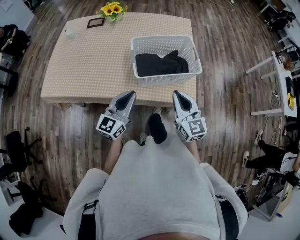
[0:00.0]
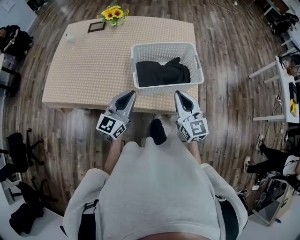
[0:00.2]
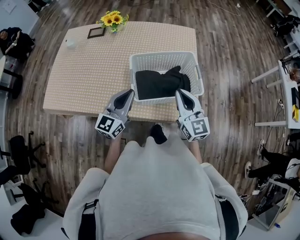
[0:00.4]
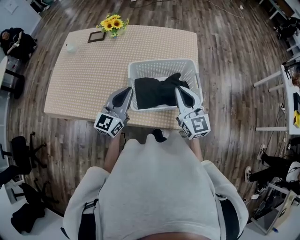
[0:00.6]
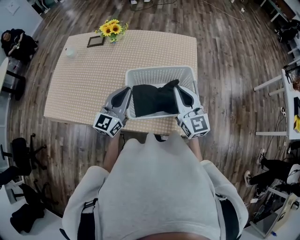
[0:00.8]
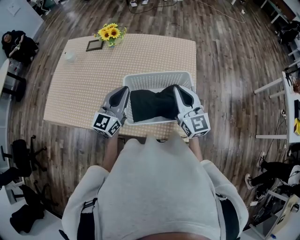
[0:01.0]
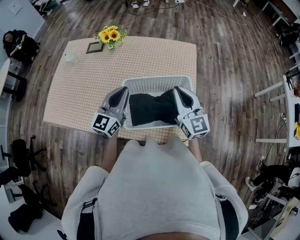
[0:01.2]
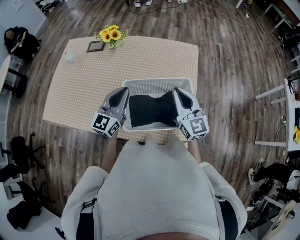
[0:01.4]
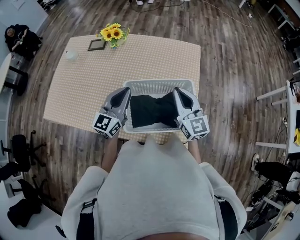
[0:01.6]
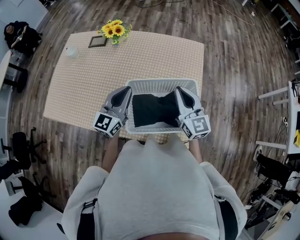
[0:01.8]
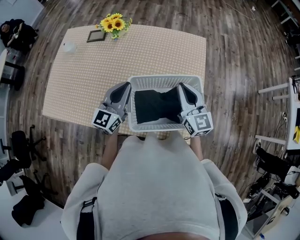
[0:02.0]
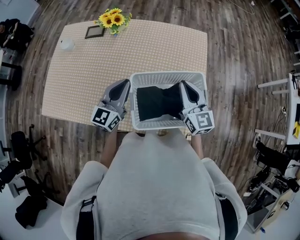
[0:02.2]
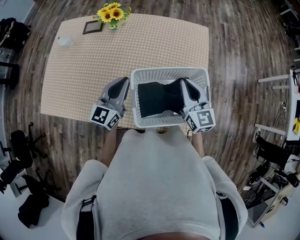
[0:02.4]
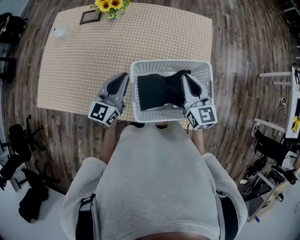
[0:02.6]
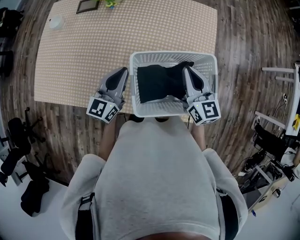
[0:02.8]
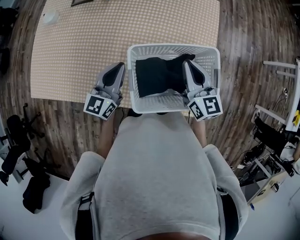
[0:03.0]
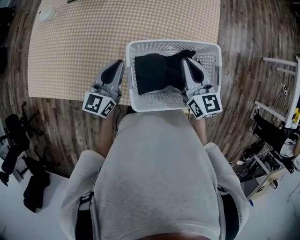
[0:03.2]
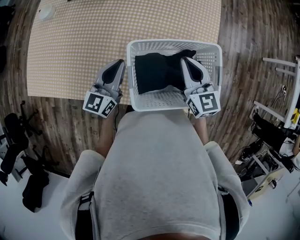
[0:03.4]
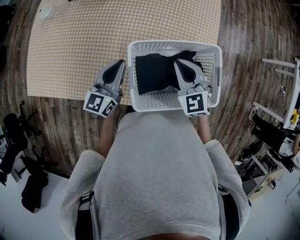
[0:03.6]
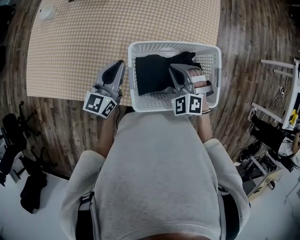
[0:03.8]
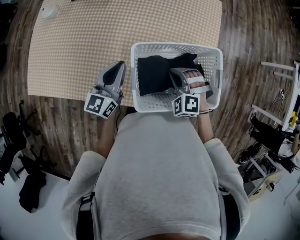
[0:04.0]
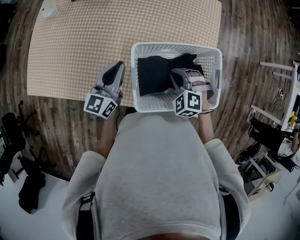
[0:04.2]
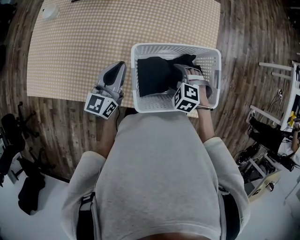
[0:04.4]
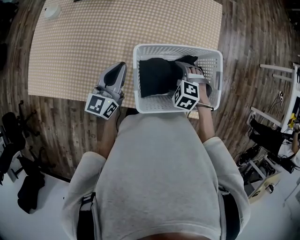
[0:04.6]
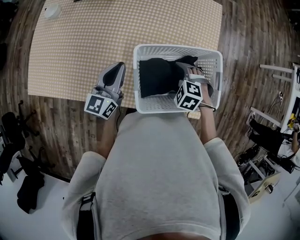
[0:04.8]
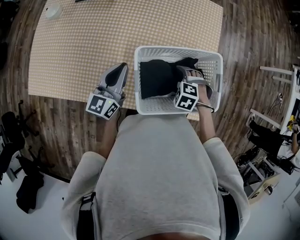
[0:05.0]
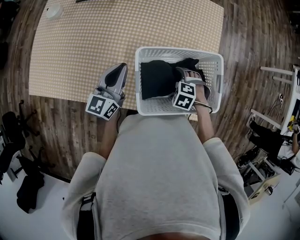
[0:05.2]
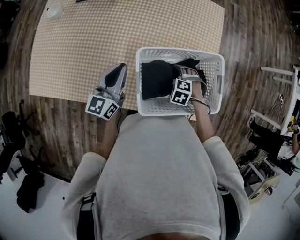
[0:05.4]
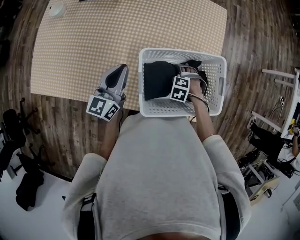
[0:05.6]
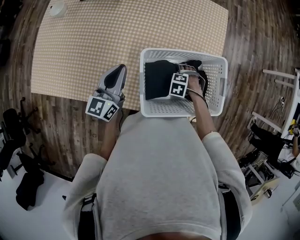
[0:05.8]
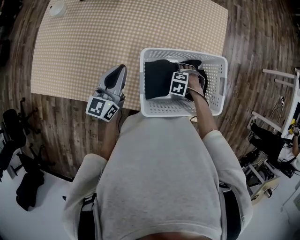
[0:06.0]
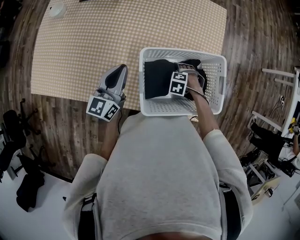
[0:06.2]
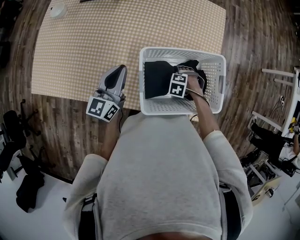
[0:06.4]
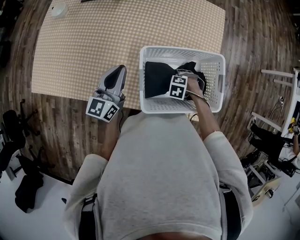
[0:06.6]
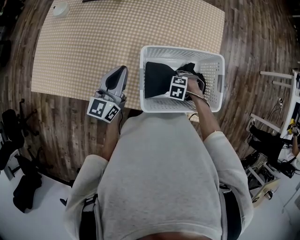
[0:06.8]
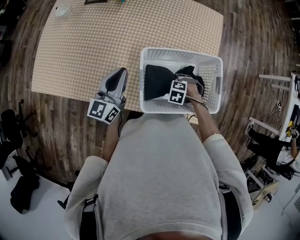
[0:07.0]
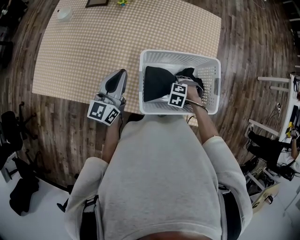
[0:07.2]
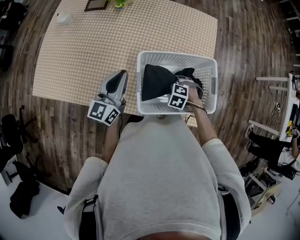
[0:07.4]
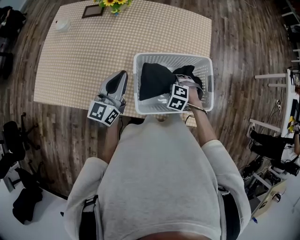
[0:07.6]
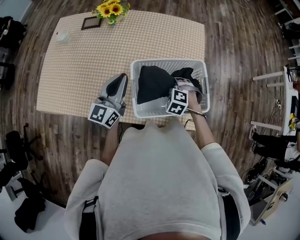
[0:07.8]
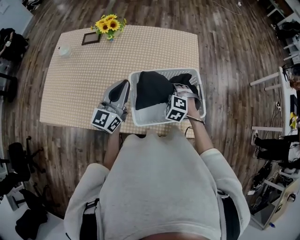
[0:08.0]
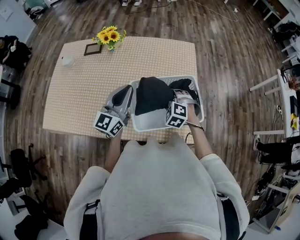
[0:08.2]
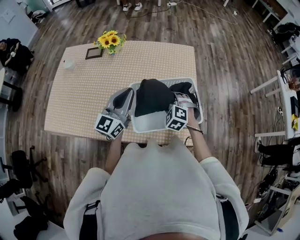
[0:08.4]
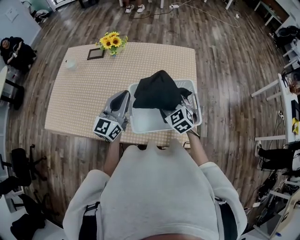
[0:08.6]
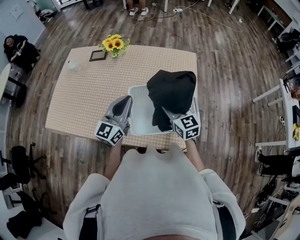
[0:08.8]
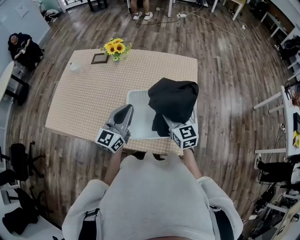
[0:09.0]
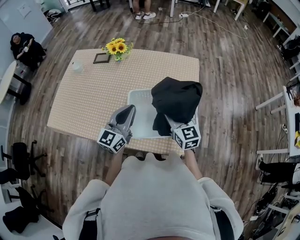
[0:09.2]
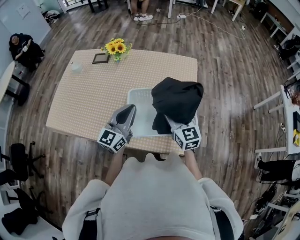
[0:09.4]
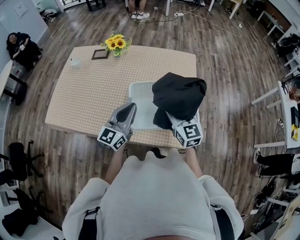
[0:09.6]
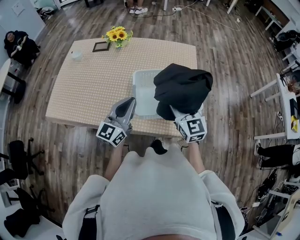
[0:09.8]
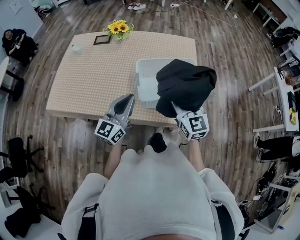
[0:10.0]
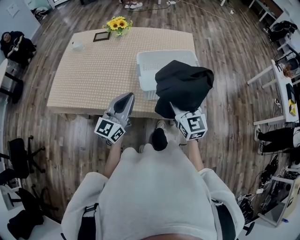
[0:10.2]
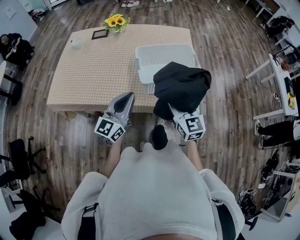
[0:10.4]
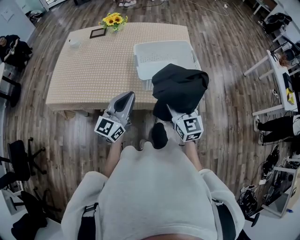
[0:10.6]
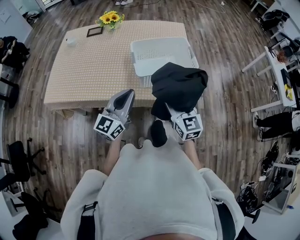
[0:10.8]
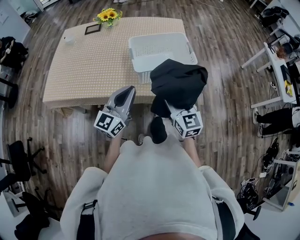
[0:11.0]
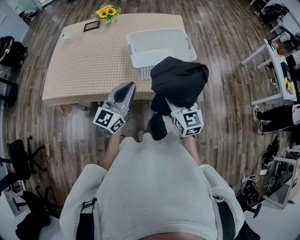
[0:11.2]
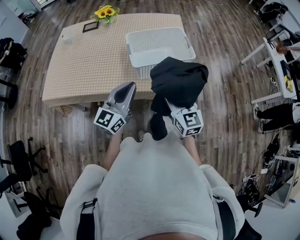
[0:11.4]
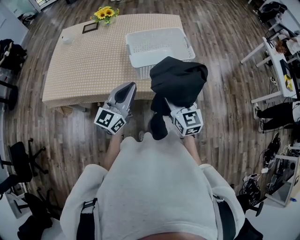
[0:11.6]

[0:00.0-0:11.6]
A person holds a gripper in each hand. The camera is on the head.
0:00.0 to 0:01.4: Both grippers move forward, approximately 25 cm.
0:01.4 to 0:02.8: The left gripper travels downward and to the left by roughly 10 cm. The right gripper moves downward, some 10 cm.
0:02.8 to 0:04.4: The right gripper goes about 15 cm downward, points its fingers approximately 60 degrees further downward, and opens its fingers.
0:04.4 to 0:05.8: The right gripper shifts approximately 10 cm downward, and changes its angle by roughly 20 degrees.
0:05.8 to 0:07.2: The right gripper closes up.
0:07.2 to 0:08.8: The right gripper moves upward, some 25 cm, and points its fingers some 70 degrees further upward; the left gripper changes place by some 15 cm.
0:08.8 to 0:10.2: Both grippers move backward, approximately 20 cm.
0:10.2 to 0:11.6: The right gripper shifts some 10 cm backward. Meanwhile the left gripper shifts about 5 cm backward.

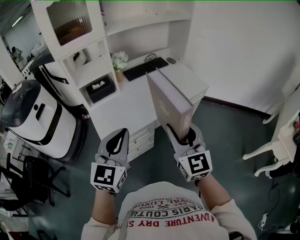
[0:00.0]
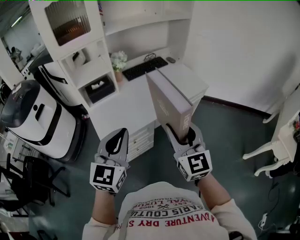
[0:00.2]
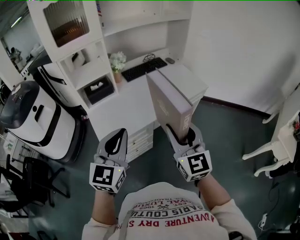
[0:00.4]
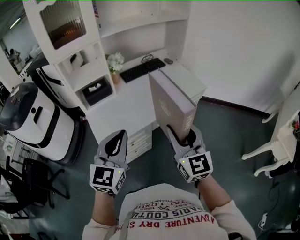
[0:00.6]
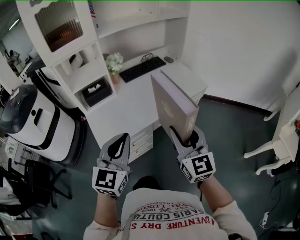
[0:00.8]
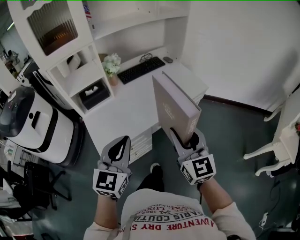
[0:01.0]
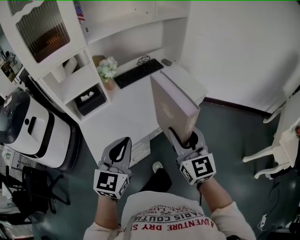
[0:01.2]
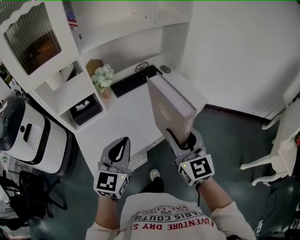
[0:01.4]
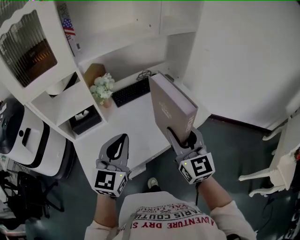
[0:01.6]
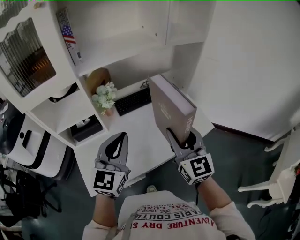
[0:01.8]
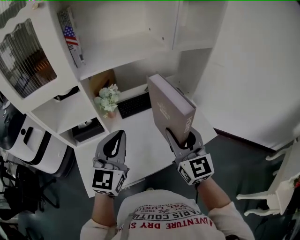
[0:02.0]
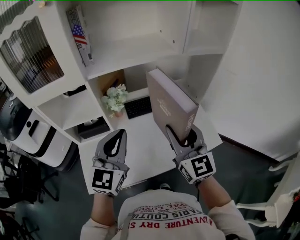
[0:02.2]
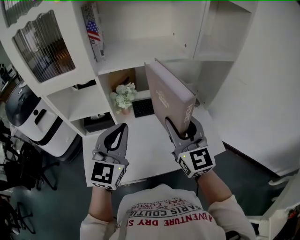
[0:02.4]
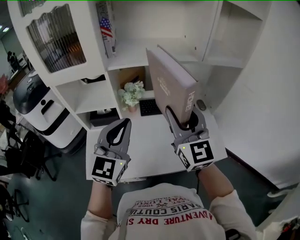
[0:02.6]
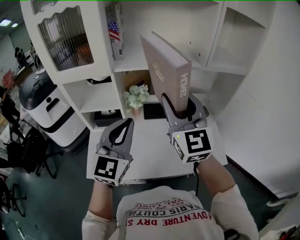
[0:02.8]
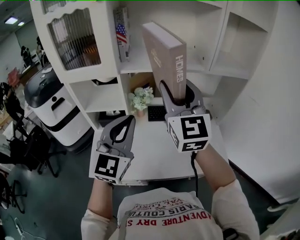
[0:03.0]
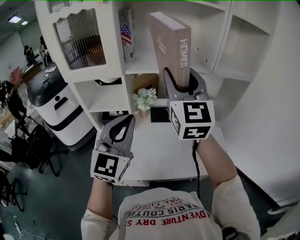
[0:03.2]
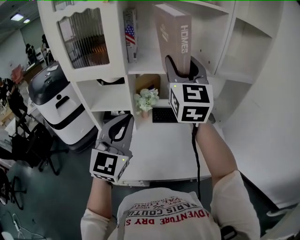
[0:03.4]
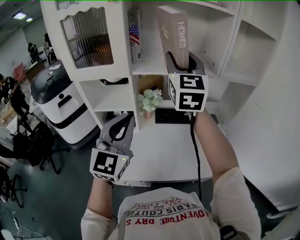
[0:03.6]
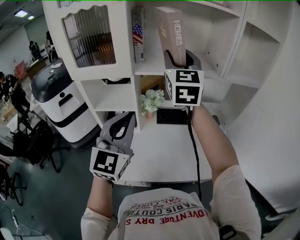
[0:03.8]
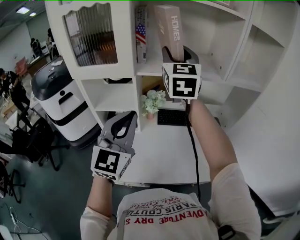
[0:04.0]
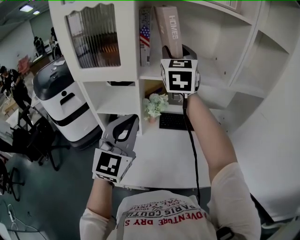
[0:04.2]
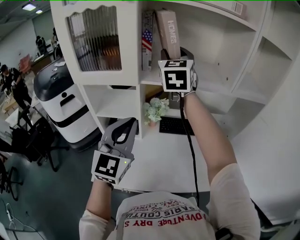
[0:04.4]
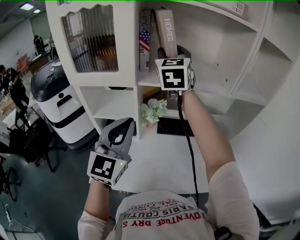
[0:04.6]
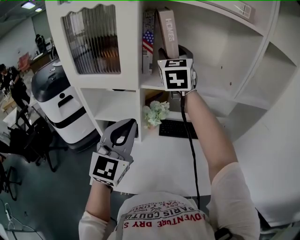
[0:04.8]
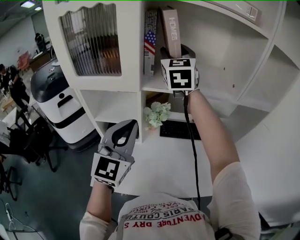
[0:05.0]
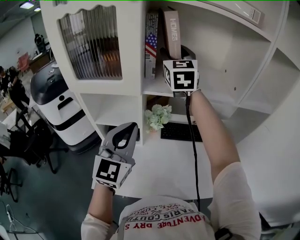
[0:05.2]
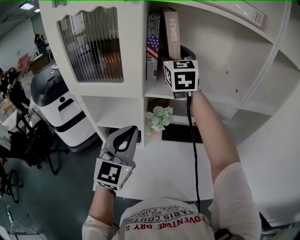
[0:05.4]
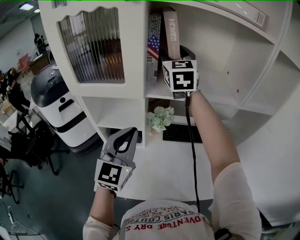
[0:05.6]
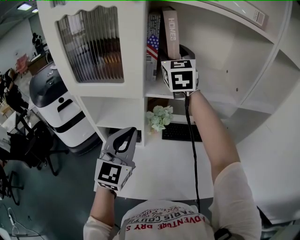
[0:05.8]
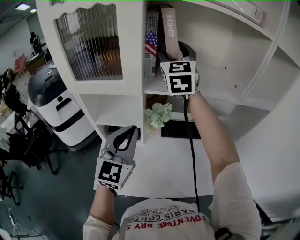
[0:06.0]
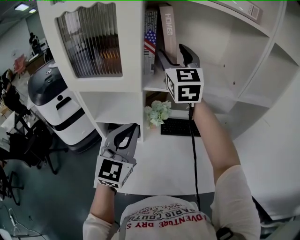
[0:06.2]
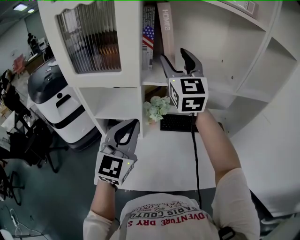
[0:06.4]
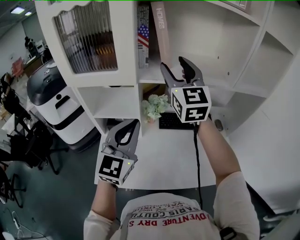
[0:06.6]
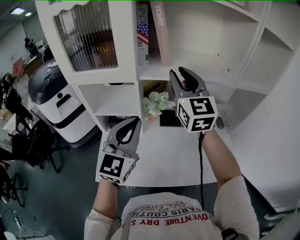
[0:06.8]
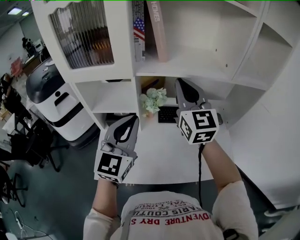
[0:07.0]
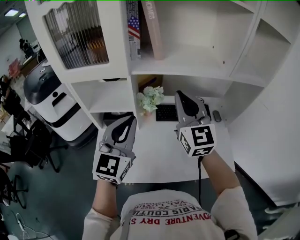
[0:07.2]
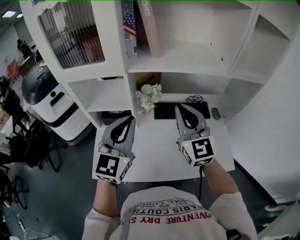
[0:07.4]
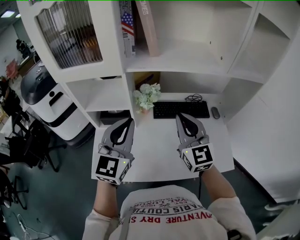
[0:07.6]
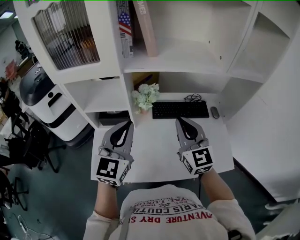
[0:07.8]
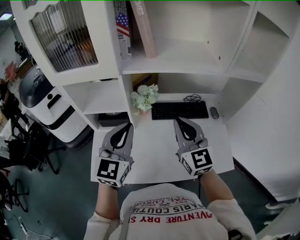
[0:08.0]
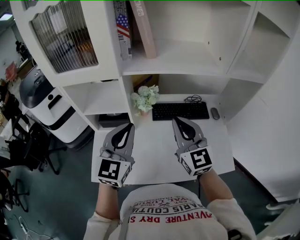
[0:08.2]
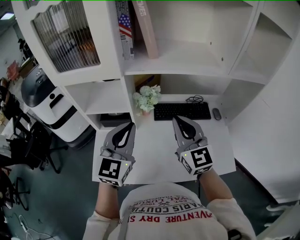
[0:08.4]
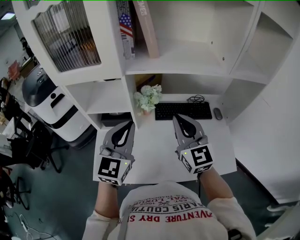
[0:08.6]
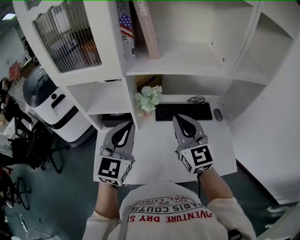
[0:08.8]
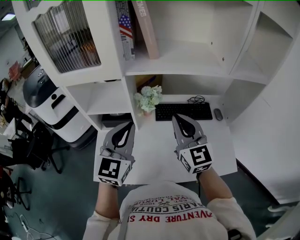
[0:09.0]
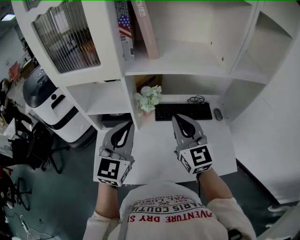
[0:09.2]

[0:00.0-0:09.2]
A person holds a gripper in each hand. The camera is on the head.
0:00.0 to 0:01.6: Both grippers move forward, roughly 25 cm.
0:01.6 to 0:03.0: The left gripper is displaced upward and forward by about 15 cm, and changes its angle by roughly 30 degrees. The right gripper is displaced forward, upward and to the left by approximately 30 cm, and changes its angle by approximately 30 degrees.
0:03.0 to 0:04.6: The left gripper moves to the left and forward, about 10 cm. Meanwhile the right gripper goes some 25 cm forward and to the left.
0:06.2 to 0:07.6: The right gripper travels downward, backward and to the right by approximately 30 cm, and closes up. Meanwhile the left gripper changes place by approximately 5 cm.
0:07.6 to 0:09.2: There are only small adjustments of the grippers.

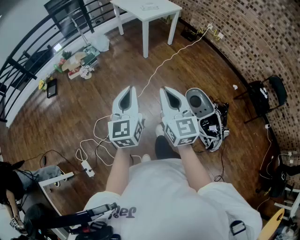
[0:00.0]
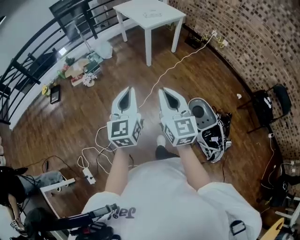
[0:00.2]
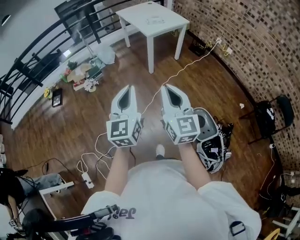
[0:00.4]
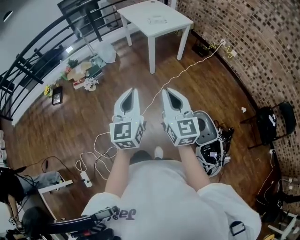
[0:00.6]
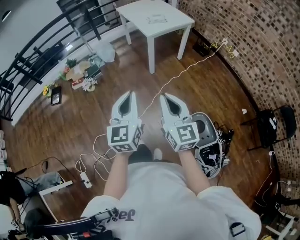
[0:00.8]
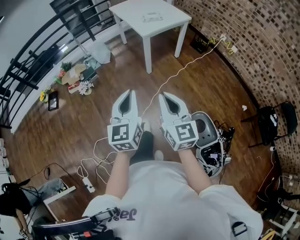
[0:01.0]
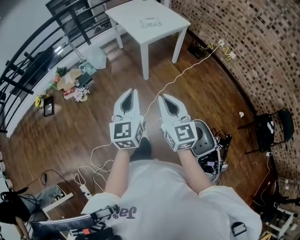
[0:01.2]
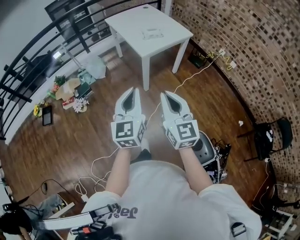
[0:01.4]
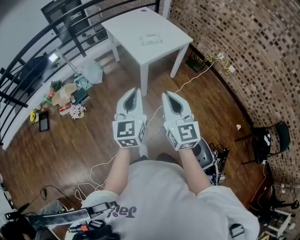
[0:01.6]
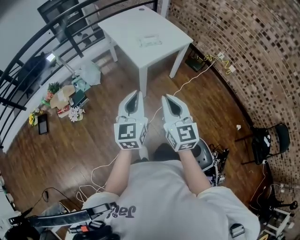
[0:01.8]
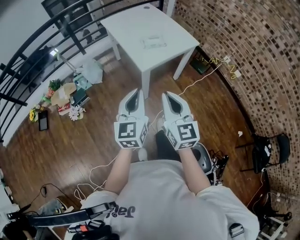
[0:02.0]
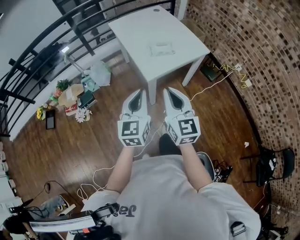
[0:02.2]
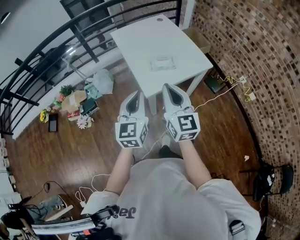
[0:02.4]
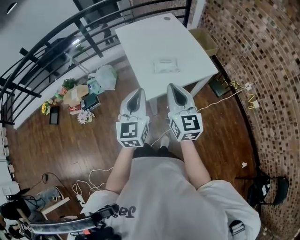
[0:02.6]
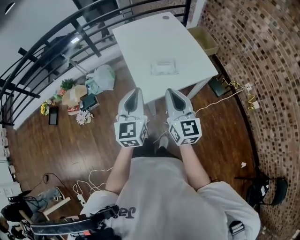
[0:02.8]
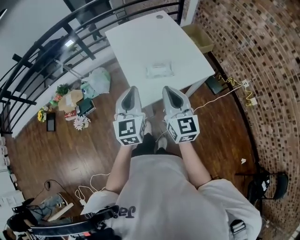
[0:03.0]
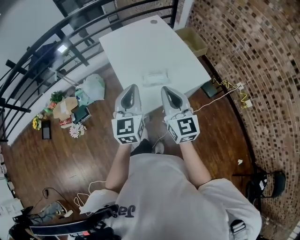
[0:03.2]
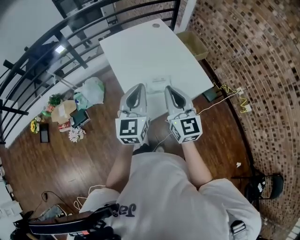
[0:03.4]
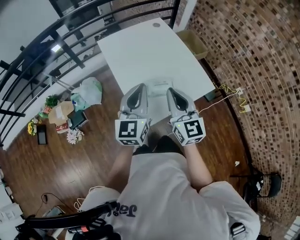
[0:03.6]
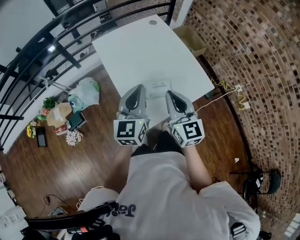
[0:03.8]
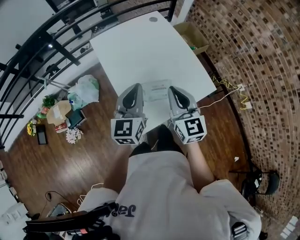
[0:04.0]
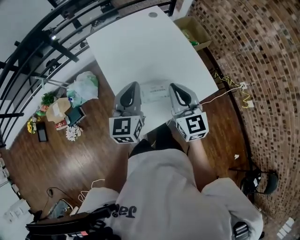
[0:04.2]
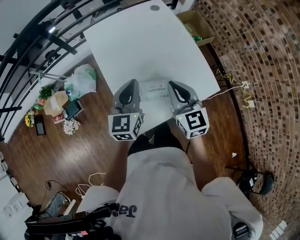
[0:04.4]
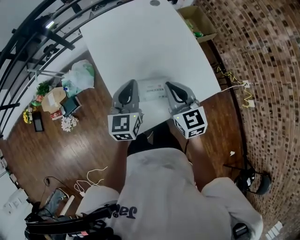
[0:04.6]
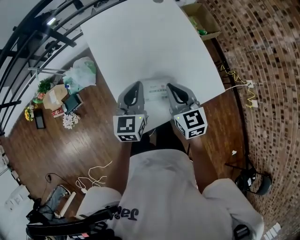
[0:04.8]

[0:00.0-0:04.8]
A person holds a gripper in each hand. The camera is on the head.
0:00.0 to 0:01.6: The two grippers travel together, forward, about 60 cm.
0:01.6 to 0:03.2: Both grippers are carried forward, approximately 50 cm.
0:03.2 to 0:04.8: Both grippers move forward and downward, roughly 25 cm. The right gripper changes its angle by roughly 30 degrees.
